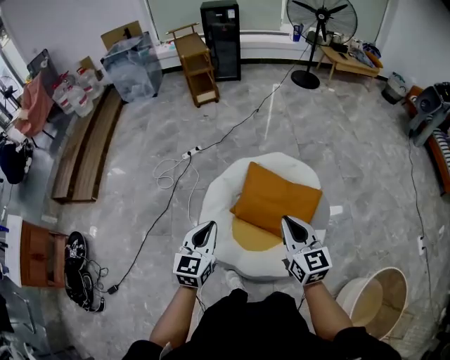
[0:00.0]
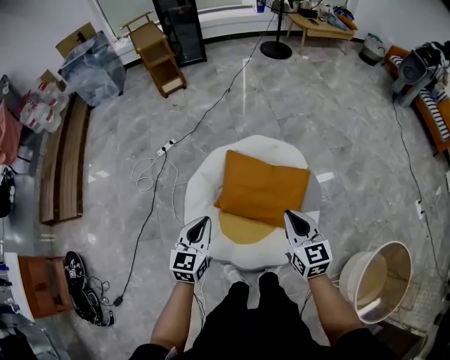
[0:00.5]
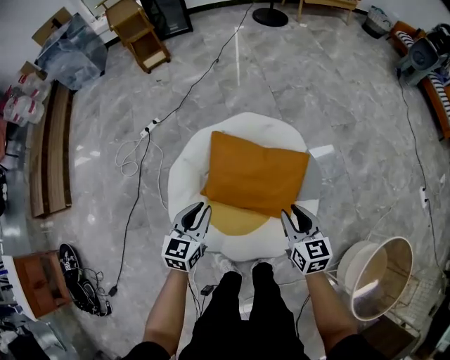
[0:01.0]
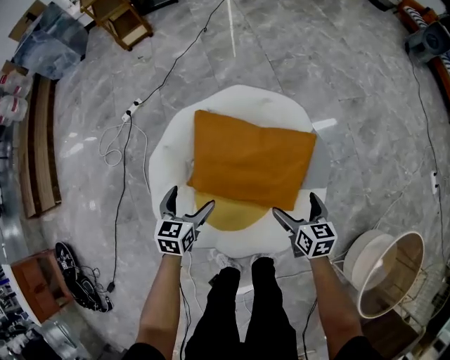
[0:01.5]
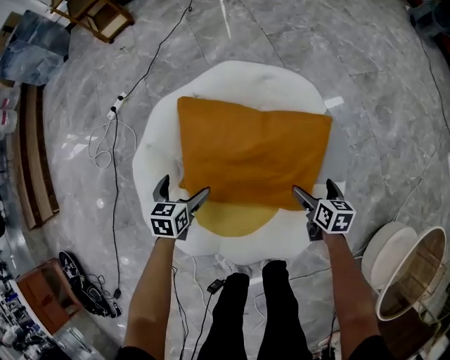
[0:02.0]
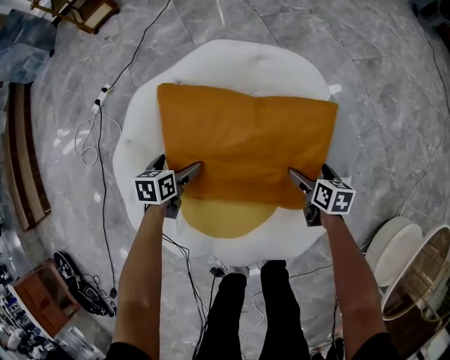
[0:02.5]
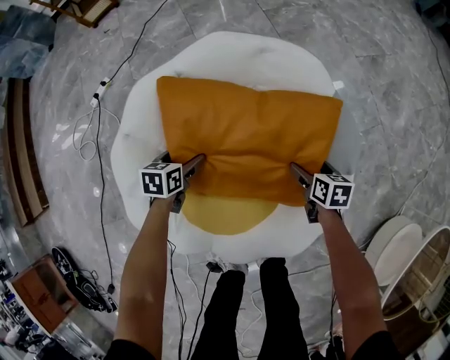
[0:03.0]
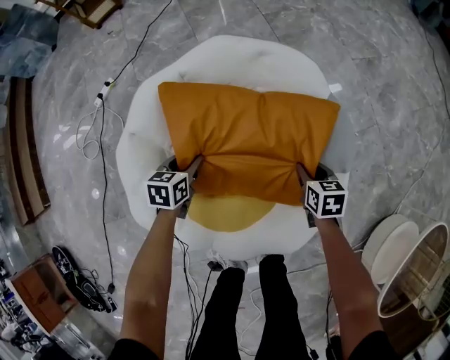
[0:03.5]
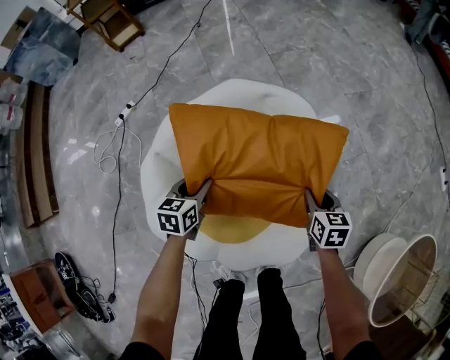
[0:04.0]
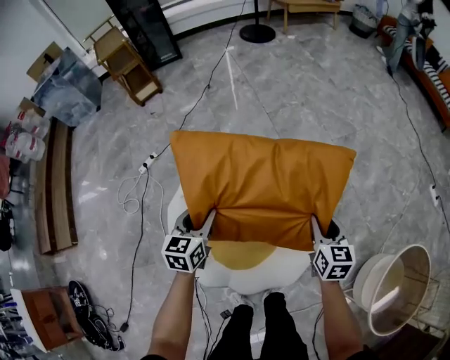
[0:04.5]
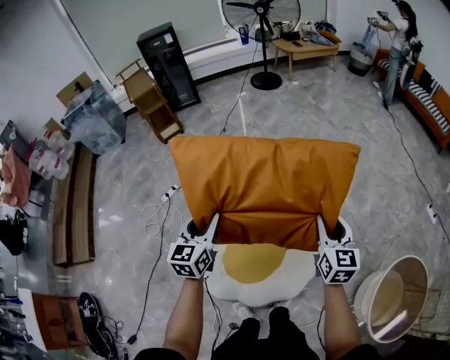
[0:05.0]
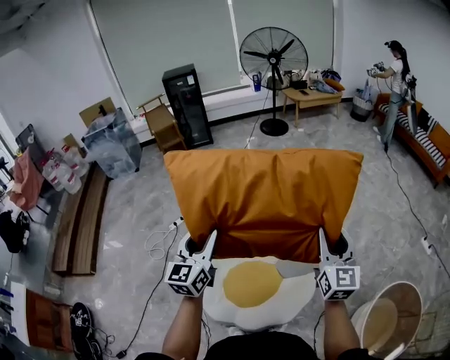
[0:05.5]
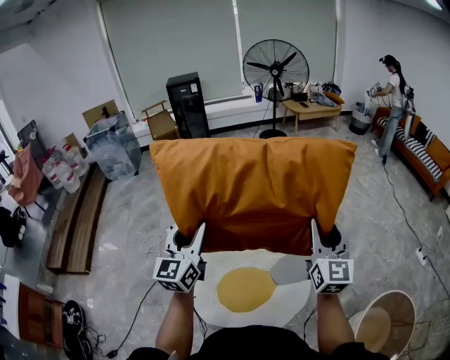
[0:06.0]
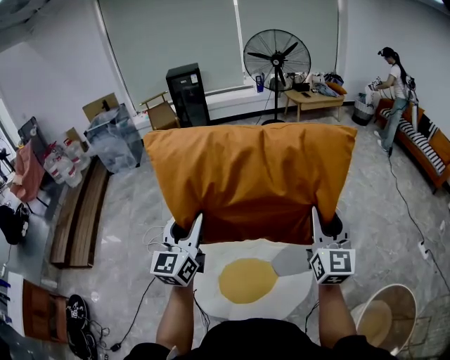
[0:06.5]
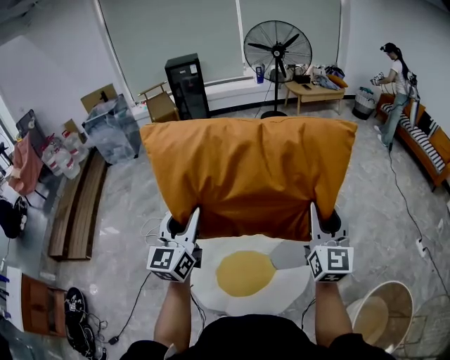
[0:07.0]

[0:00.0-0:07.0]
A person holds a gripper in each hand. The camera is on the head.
0:00.0 to 0:02.0: The right gripper shifts roughly 60 cm downward and to the right, points its fingers roughly 40 degrees further downward, and opens up, while the left gripper shifts some 50 cm downward and forward, tips its fingers downward by about 30 degrees, and opens.
0:02.0 to 0:03.5: The right gripper closes, while the left gripper moves downward, approximately 5 cm, and closes.
0:03.5 to 0:05.0: The two grippers go roughly 60 cm upward. The right gripper points its fingers approximately 40 degrees further upward. The left gripper tips its fingers upward by roughly 40 degrees.
0:05.0 to 0:07.0: Both grippers travel together upward, approximately 20 cm. The left gripper rotates about 20 degrees. Meanwhile the right gripper turns by roughly 30 degrees.

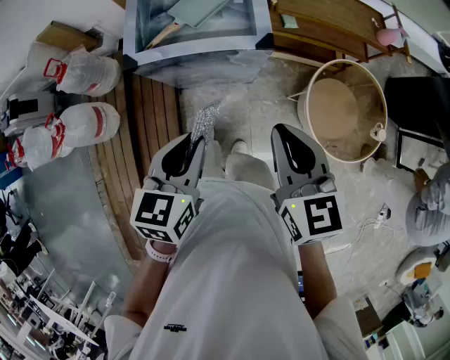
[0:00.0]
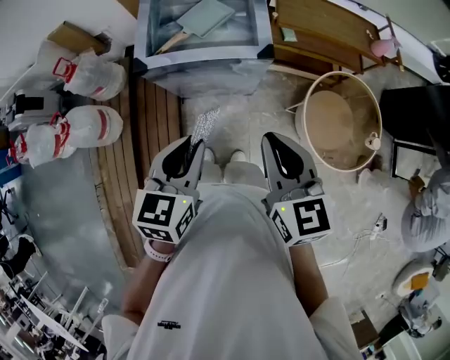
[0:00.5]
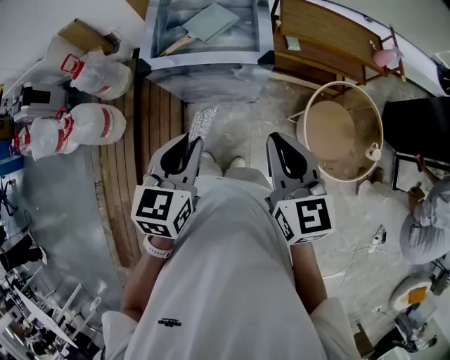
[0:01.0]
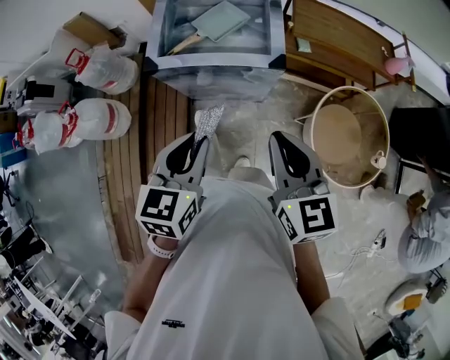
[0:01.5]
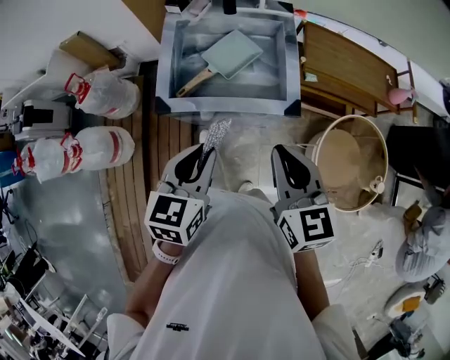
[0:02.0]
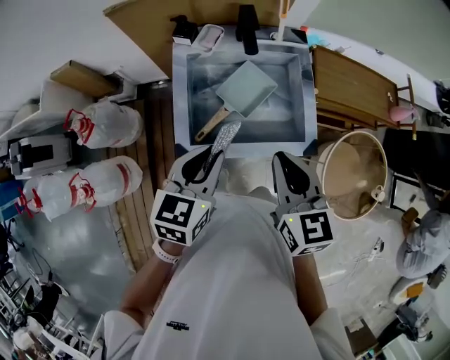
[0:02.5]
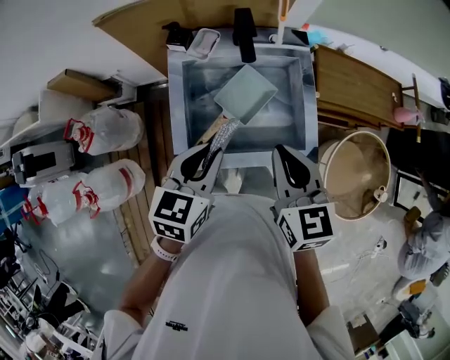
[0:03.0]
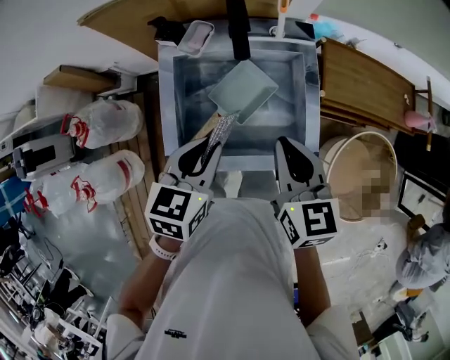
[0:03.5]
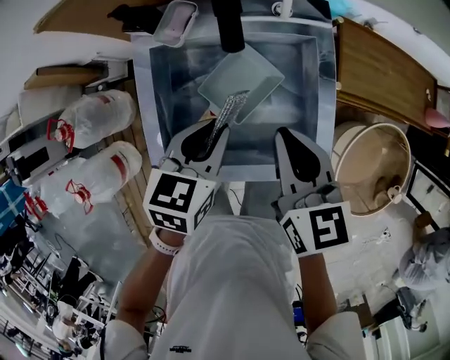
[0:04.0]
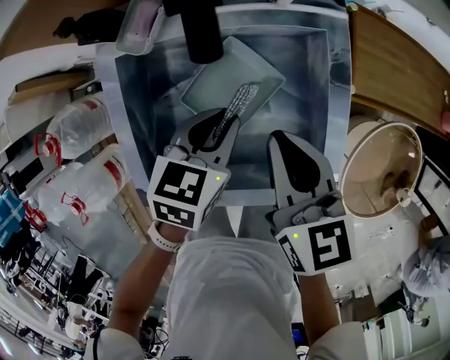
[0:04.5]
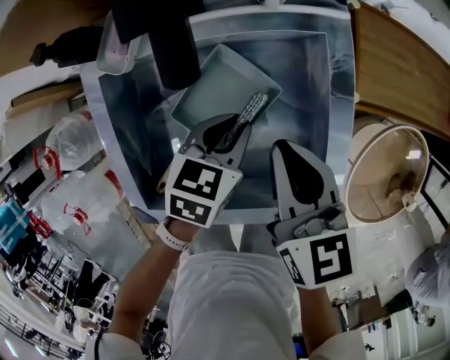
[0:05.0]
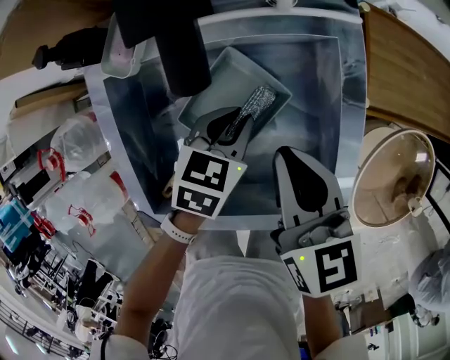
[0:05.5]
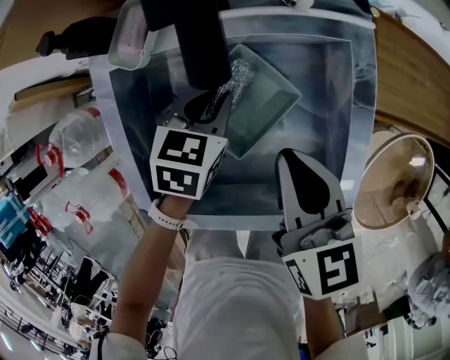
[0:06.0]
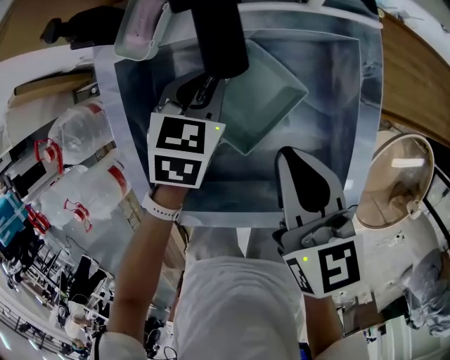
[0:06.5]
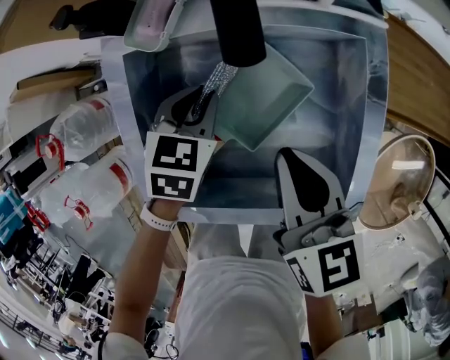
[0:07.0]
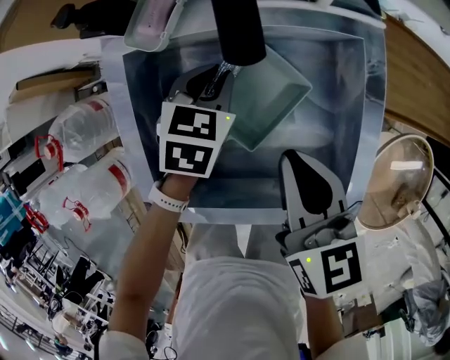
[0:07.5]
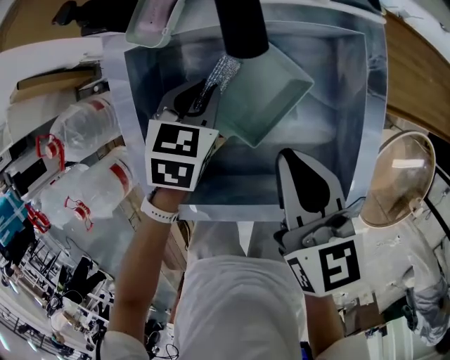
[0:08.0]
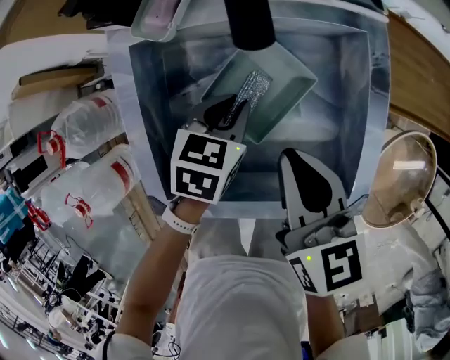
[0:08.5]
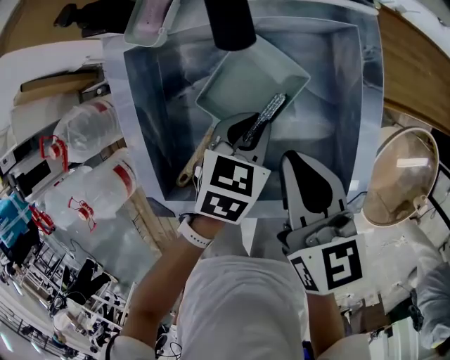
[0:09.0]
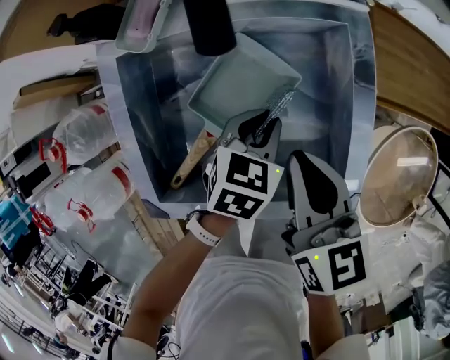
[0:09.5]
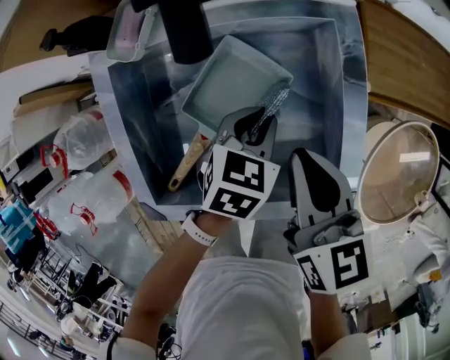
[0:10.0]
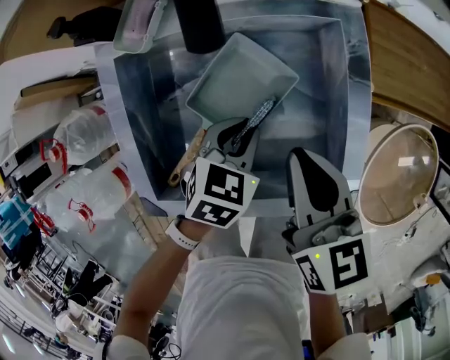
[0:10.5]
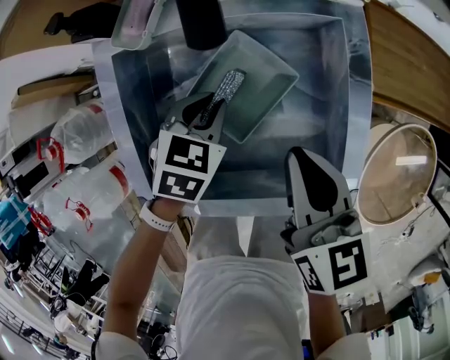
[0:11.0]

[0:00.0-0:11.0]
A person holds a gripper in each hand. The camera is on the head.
0:00.0 to 0:02.0: The grippers both shift forward and to the left by about 15 cm.
0:02.0 to 0:03.5: Both grippers move forward, about 25 cm.
0:03.5 to 0:05.5: The right gripper moves downward and forward, some 20 cm. Meanwhile the left gripper goes approximately 30 cm downward and forward.
0:05.5 to 0:07.5: The left gripper shifts approximately 10 cm to the left and forward.
0:07.5 to 0:09.0: The left gripper moves backward and to the right, some 15 cm.
0:09.0 to 0:11.0: The left gripper moves to the left, about 5 cm.

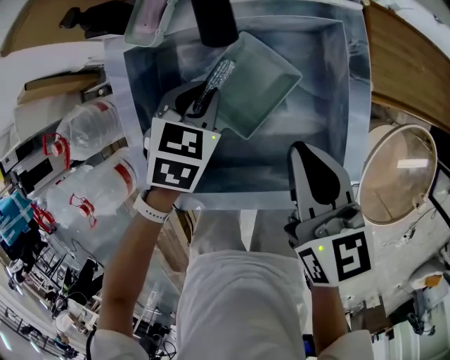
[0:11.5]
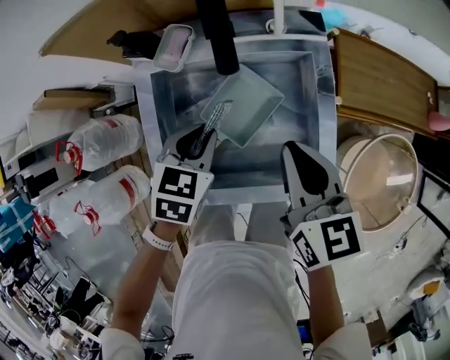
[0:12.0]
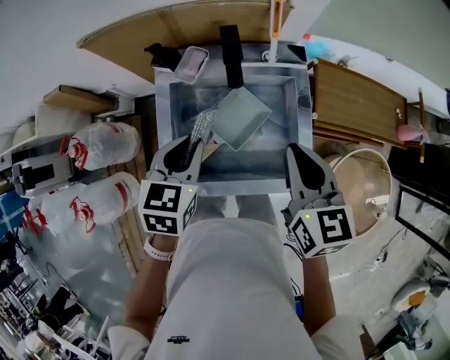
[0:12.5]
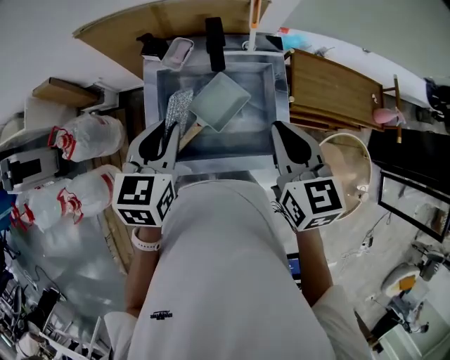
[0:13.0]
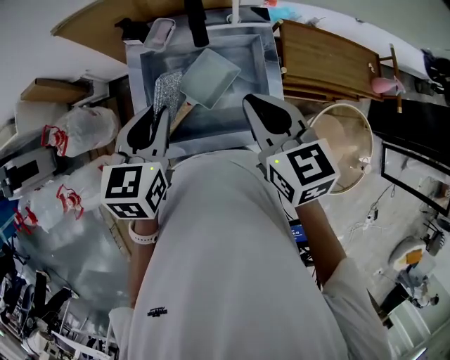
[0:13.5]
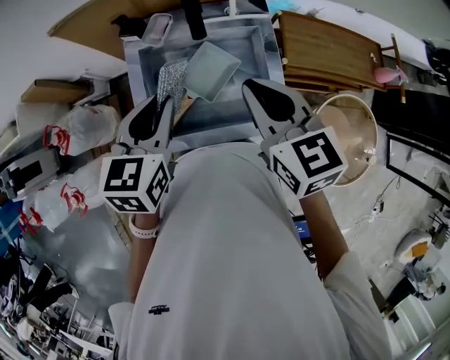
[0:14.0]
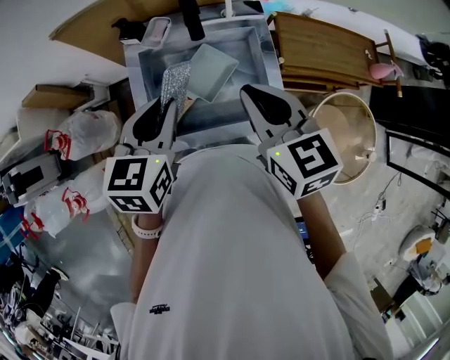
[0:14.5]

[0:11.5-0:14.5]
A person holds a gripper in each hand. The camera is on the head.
0:11.5 to 0:13.0: Both grippers move upward, about 25 cm. The left gripper turns by some 30 degrees.
0:13.0 to 0:14.5: The grippers move only a little.

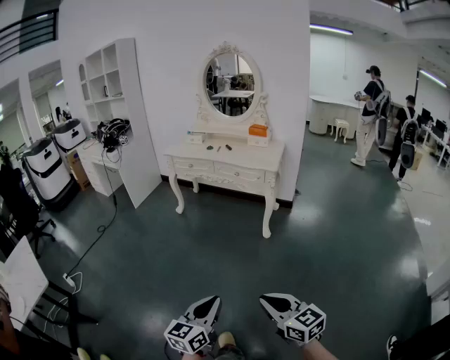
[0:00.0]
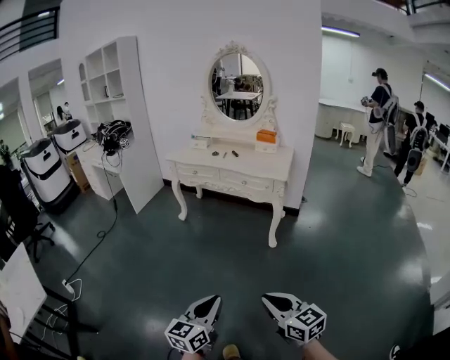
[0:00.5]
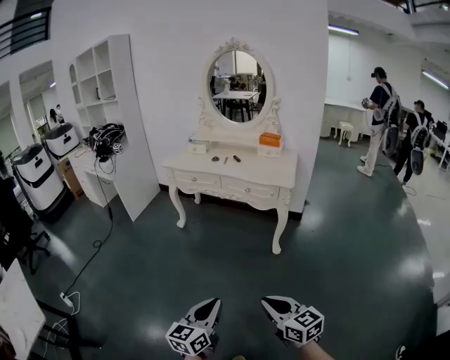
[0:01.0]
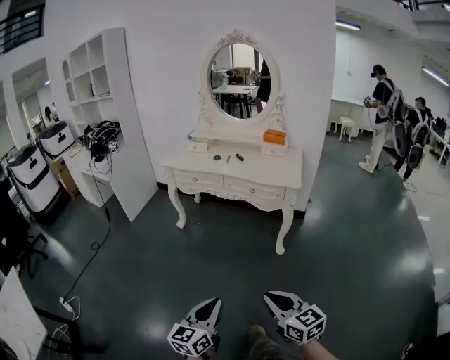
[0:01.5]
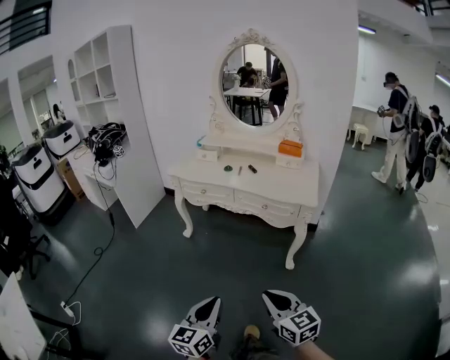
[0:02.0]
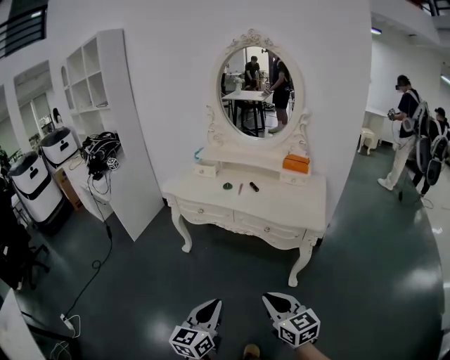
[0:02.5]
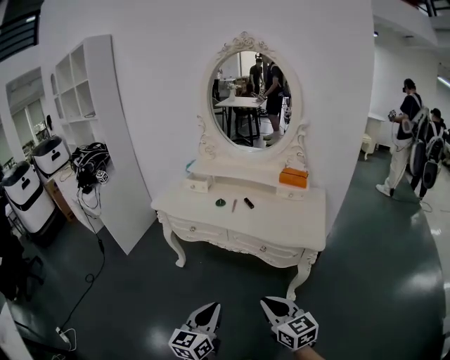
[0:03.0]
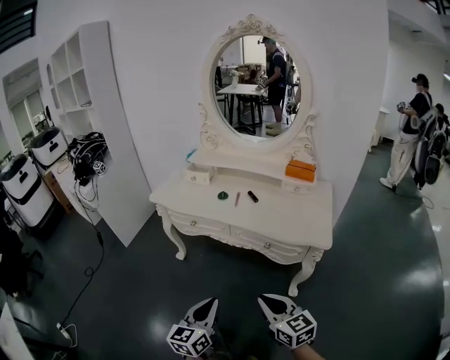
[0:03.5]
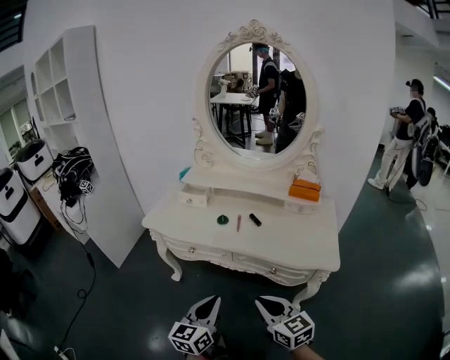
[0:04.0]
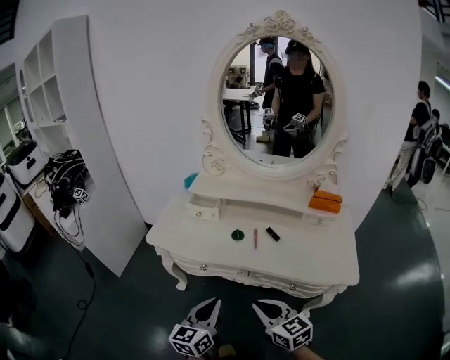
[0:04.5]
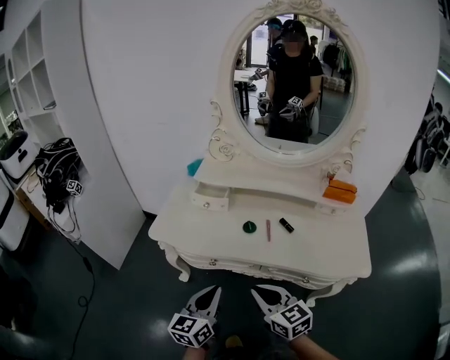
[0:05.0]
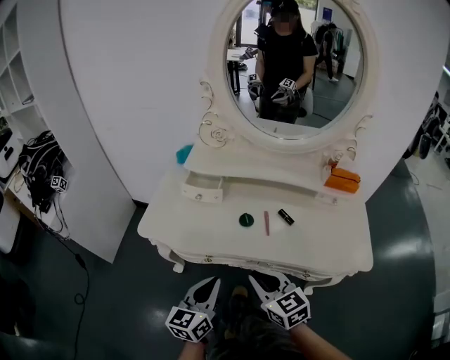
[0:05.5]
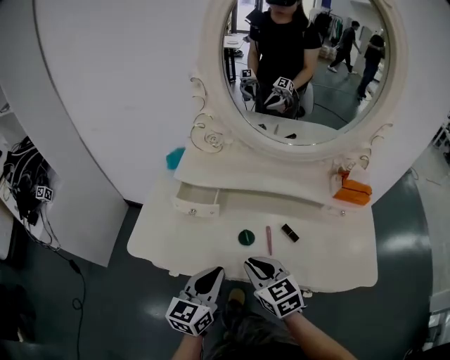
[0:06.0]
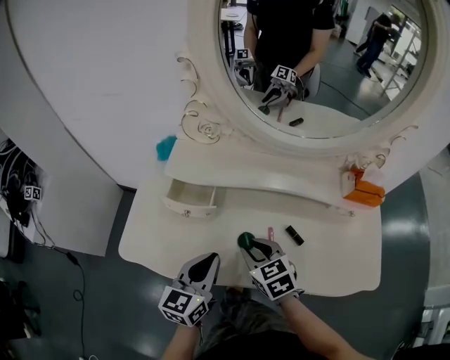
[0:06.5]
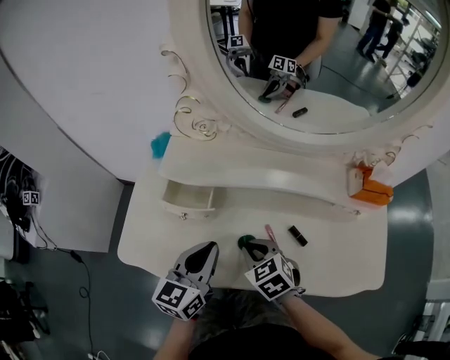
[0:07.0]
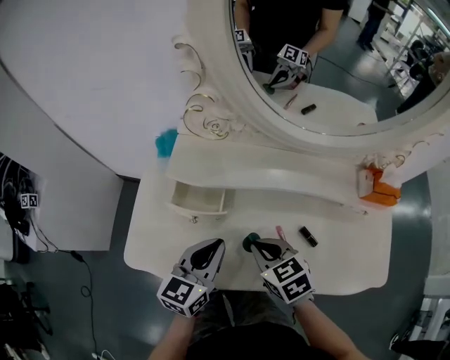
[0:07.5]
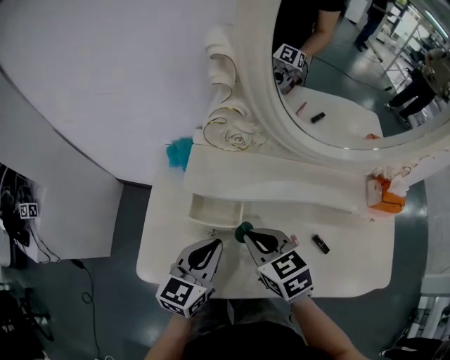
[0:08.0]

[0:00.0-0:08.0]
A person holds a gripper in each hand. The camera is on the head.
0:00.0 to 0:02.0: The grippers both shift forward by about 40 cm.
0:02.0 to 0:04.0: Both grippers move forward, approximately 40 cm.
0:04.0 to 0:06.0: Both grippers travel together forward, roughly 30 cm.
0:06.0 to 0:08.0: The grippers both shift forward and to the left by roughly 20 cm.
